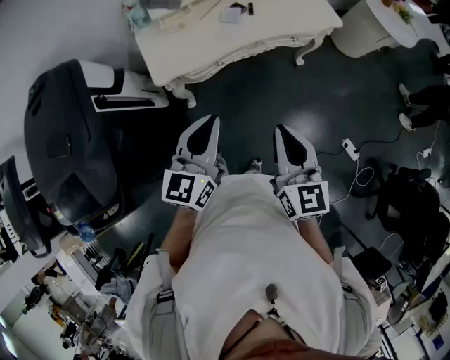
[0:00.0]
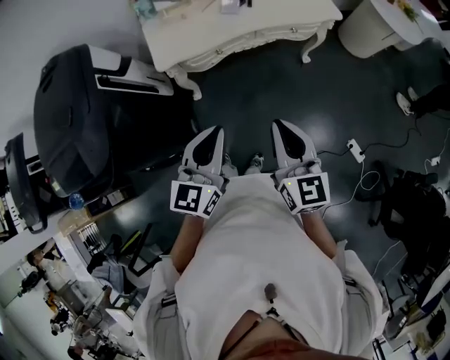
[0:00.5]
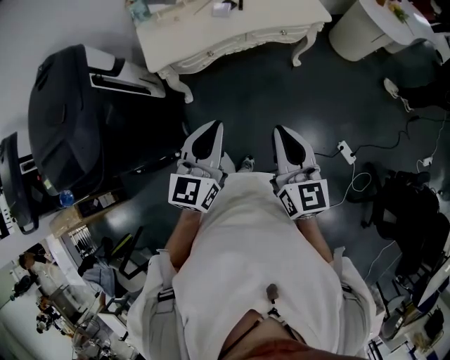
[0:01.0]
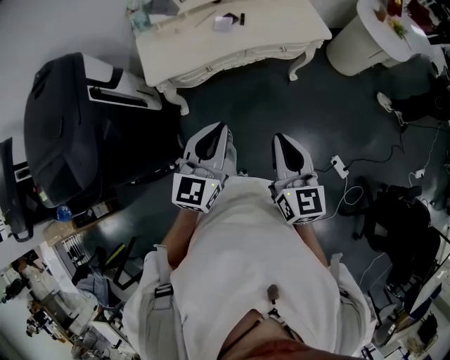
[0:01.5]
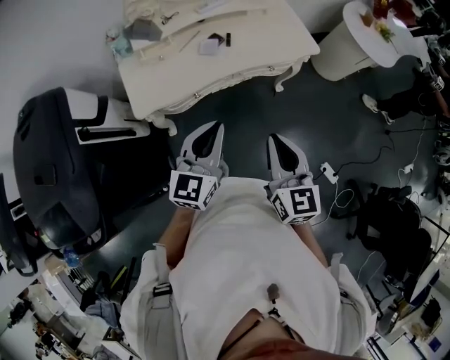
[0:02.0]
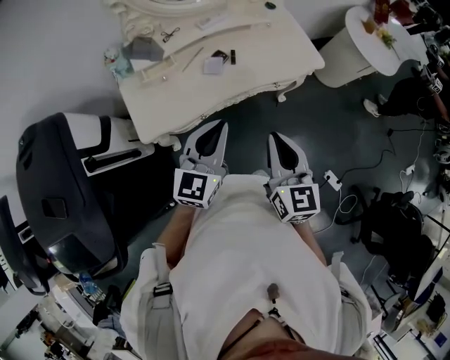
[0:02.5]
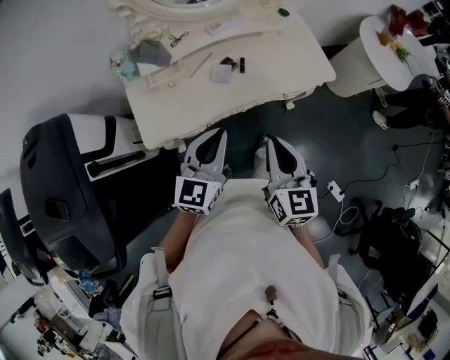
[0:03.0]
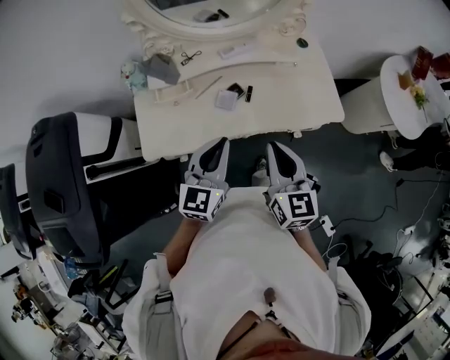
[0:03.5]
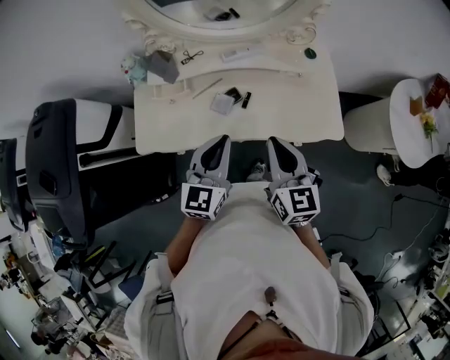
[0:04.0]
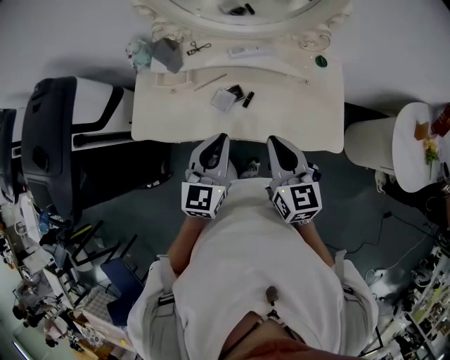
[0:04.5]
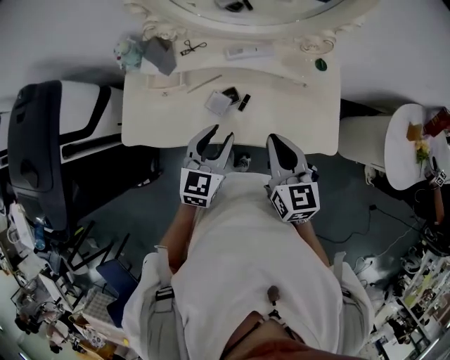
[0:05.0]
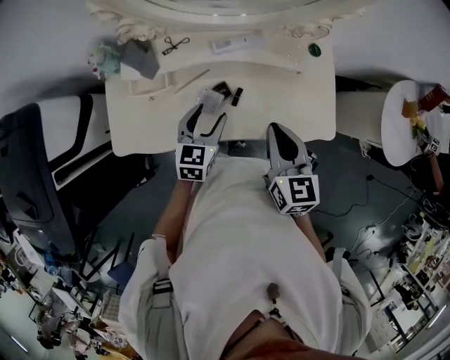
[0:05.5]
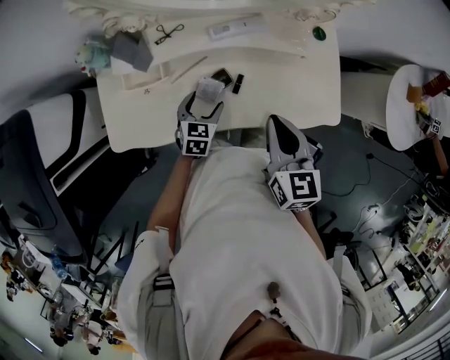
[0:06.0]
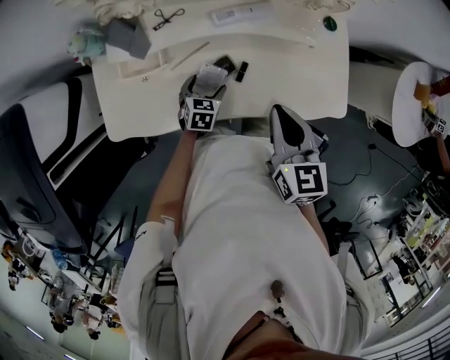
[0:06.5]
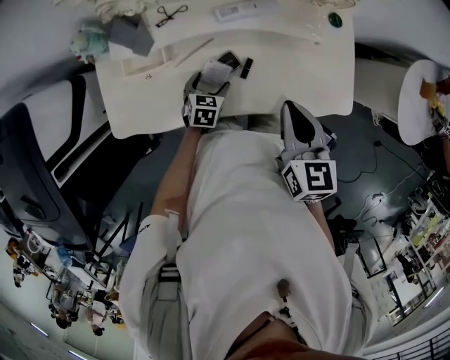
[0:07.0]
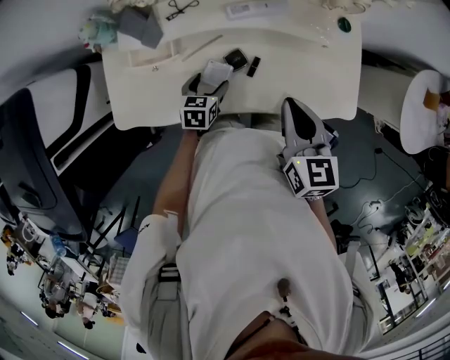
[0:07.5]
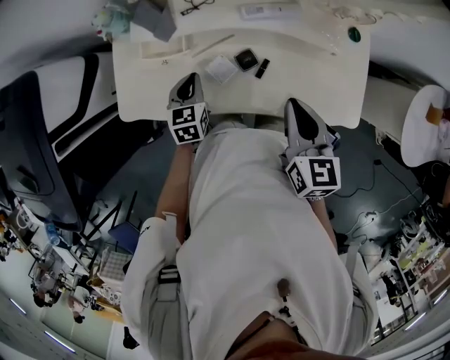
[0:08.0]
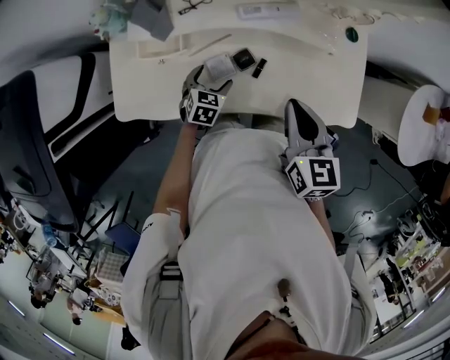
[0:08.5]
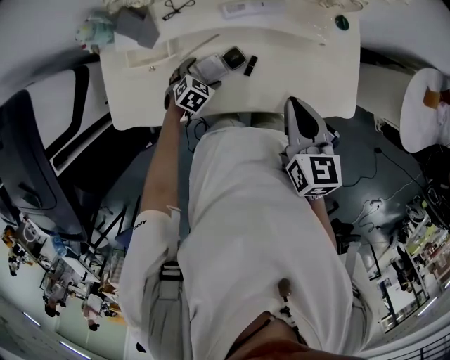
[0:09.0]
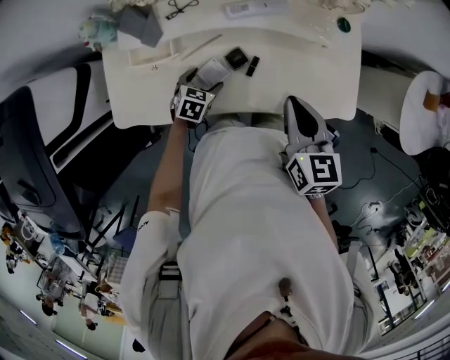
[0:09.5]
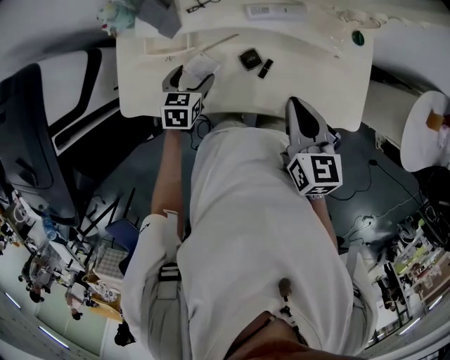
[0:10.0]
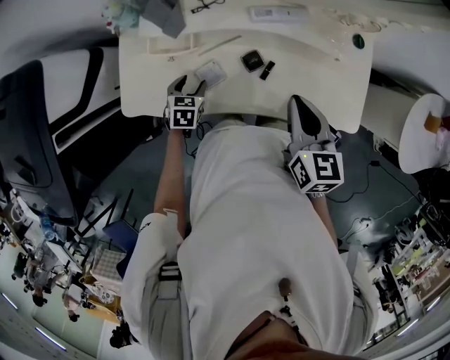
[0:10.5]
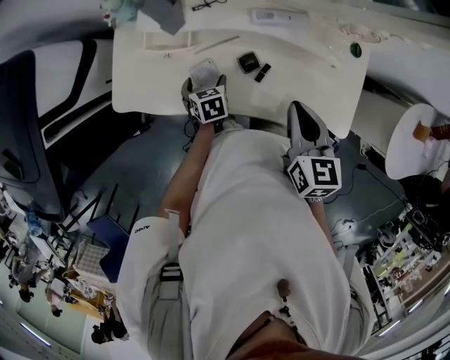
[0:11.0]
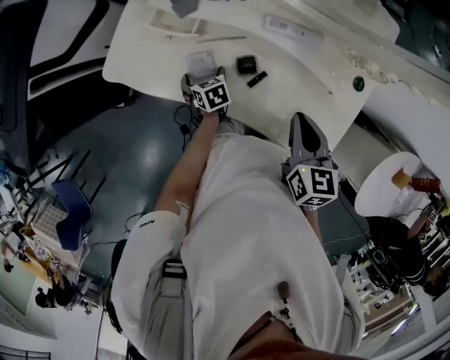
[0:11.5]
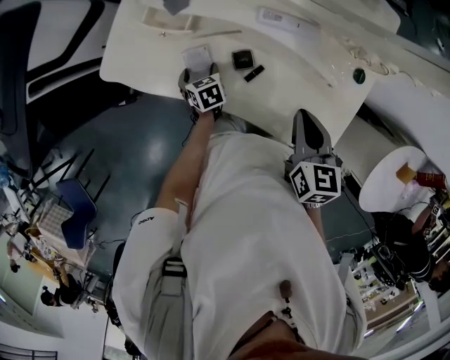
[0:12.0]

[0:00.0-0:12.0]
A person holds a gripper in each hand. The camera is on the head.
0:00.0 to 0:02.0: The right gripper shifts about 10 cm forward and to the right; the left gripper shifts roughly 15 cm to the right and forward.
0:02.0 to 0:04.0: The grippers both shift forward by some 30 cm. The left gripper swivels some 20 degrees. Meanwhile the right gripper changes its angle by roughly 20 degrees.
0:04.0 to 0:06.0: The left gripper is displaced downward and forward by roughly 30 cm, tips its fingers downward by about 30 degrees, and opens up, while the right gripper moves forward and downward, roughly 15 cm.
0:06.0 to 0:08.0: The left gripper travels to the left by roughly 10 cm, swivels approximately 20 degrees, and closes its fingers.
0:08.0 to 0:10.0: The left gripper travels downward and back again, roughly 10 cm each way, and opens up.
0:10.0 to 0:12.0: The right gripper moves roughly 10 cm, while the left gripper goes about 10 cm downward, and rotates approximately 50 degrees.

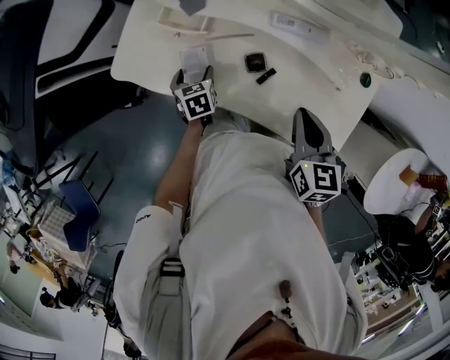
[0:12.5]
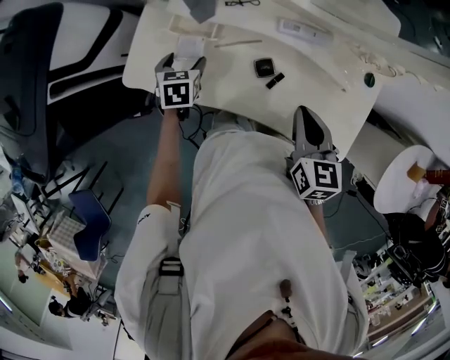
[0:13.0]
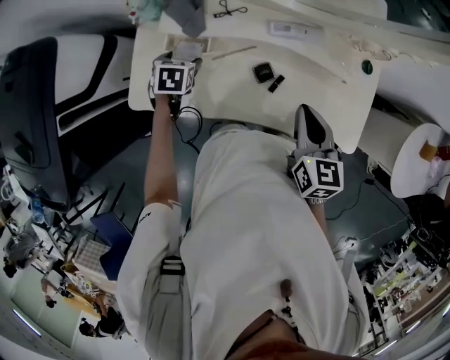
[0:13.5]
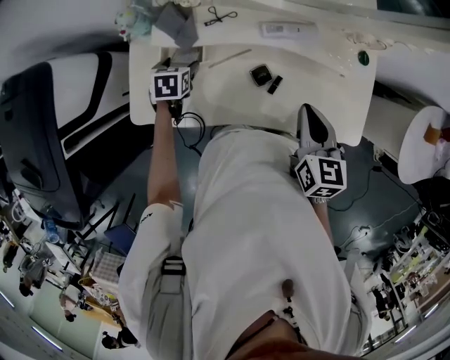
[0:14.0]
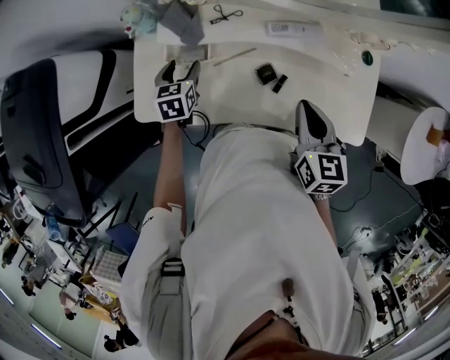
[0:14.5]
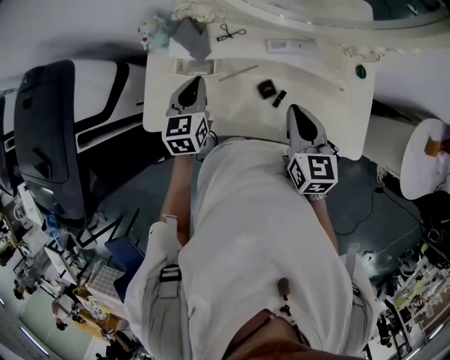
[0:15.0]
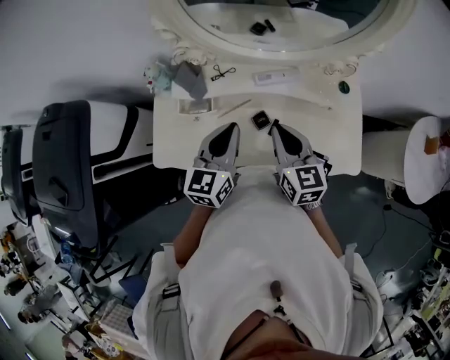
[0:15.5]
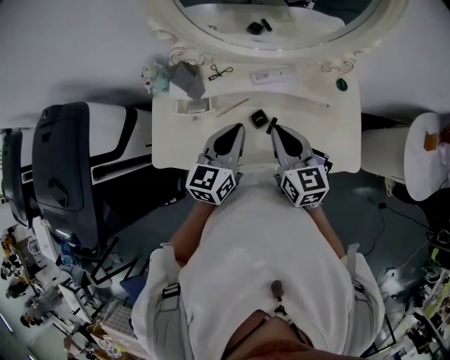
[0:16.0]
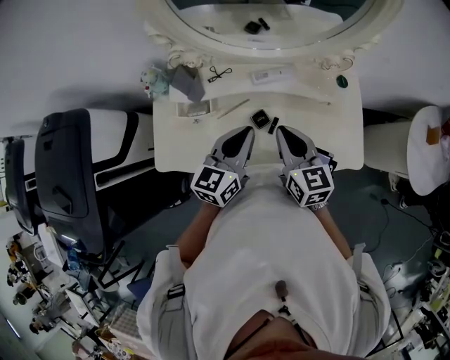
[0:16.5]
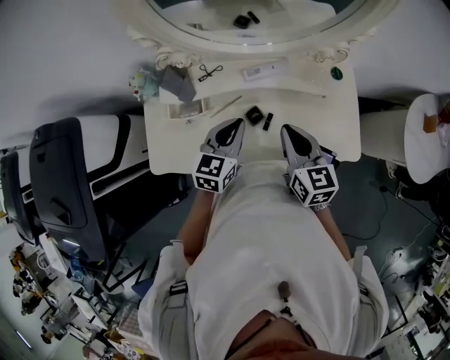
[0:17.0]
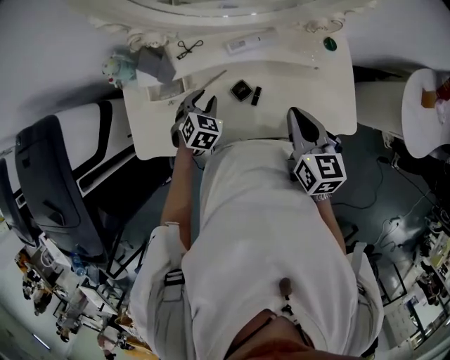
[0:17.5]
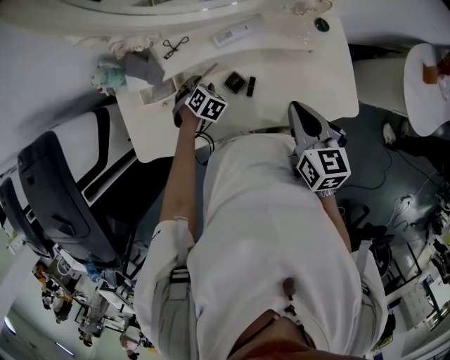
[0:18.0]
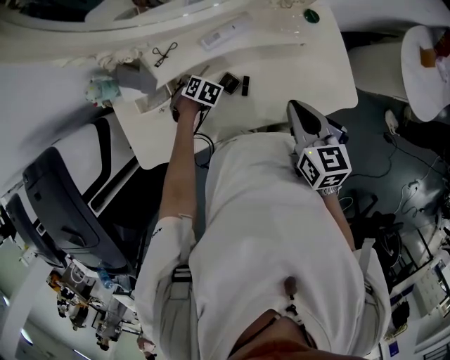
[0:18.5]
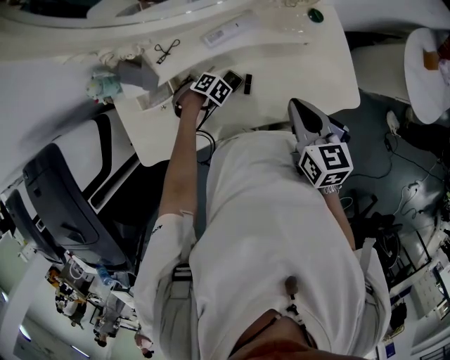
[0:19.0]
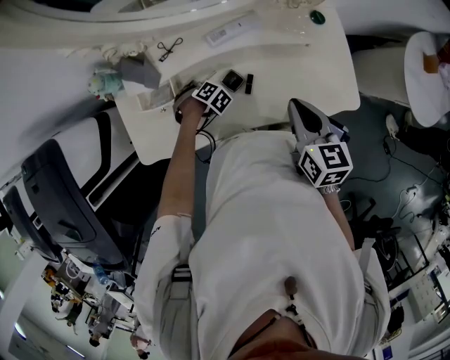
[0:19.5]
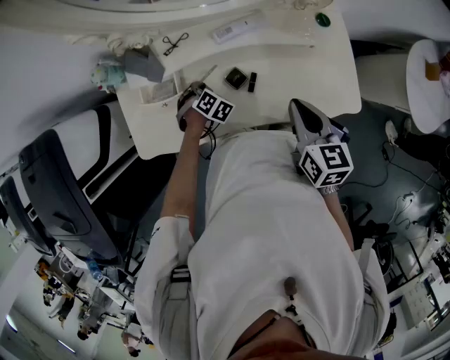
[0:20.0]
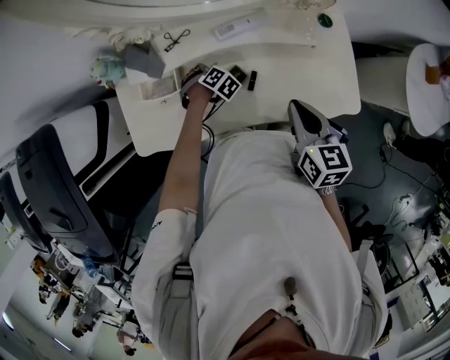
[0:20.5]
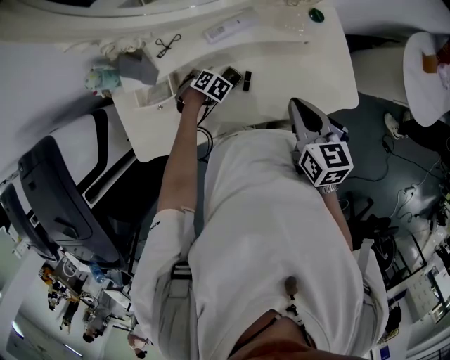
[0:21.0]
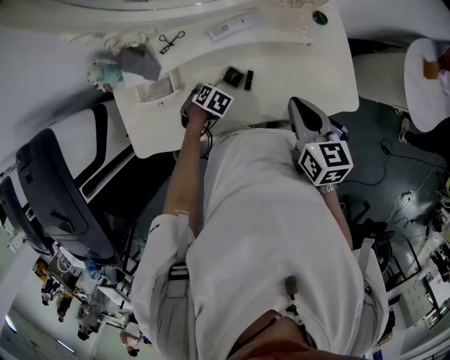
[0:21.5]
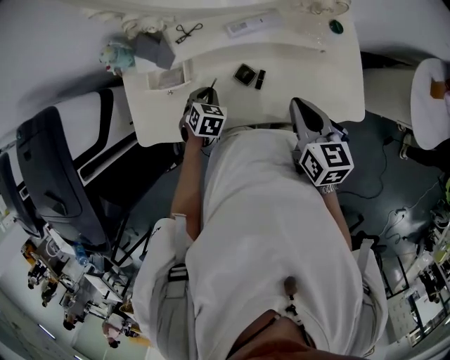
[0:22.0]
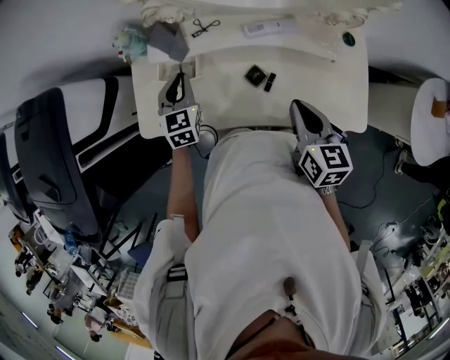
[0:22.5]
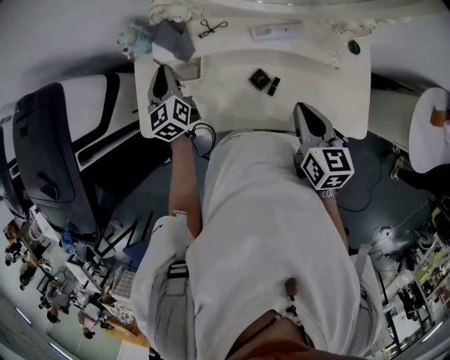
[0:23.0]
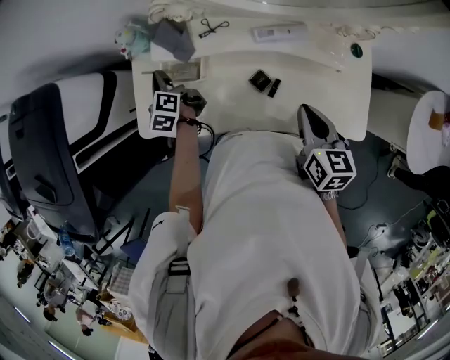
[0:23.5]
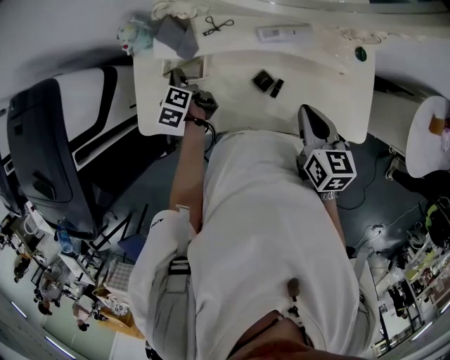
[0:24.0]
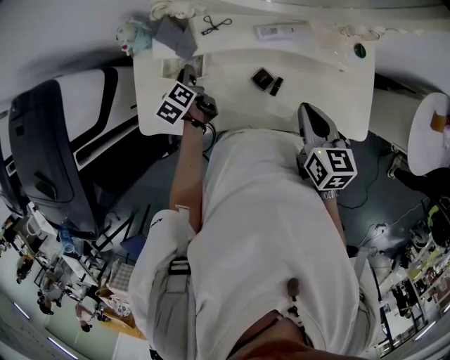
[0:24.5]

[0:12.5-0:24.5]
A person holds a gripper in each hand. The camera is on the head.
0:12.5 to 0:14.5: The left gripper ends up some 15 cm from where it was, and changes its angle by approximately 30 degrees; the right gripper moves about 5 cm.
0:14.5 to 0:16.5: The right gripper ends up about 5 cm from where it was; the left gripper is displaced upward, to the right and backward by some 30 cm, angles its fingers upward, by about 40 degrees, and closes.
0:16.5 to 0:18.5: The left gripper goes about 30 cm downward, tips its fingers downward by about 70 degrees, and opens up. Meanwhile the right gripper shifts by approximately 10 cm, and turns by about 20 degrees.
0:20.5 to 0:22.5: The left gripper goes roughly 20 cm upward, and tips its fingers upward by about 50 degrees.
0:22.5 to 0:24.5: The left gripper goes about 10 cm downward, and rotates around the line of its fingers by approximately 60 degrees, counterclockwise from behind.

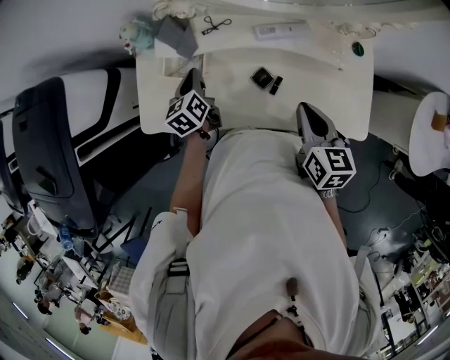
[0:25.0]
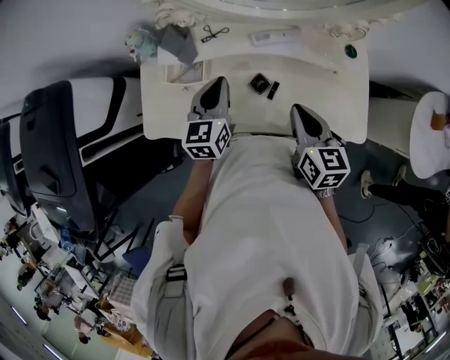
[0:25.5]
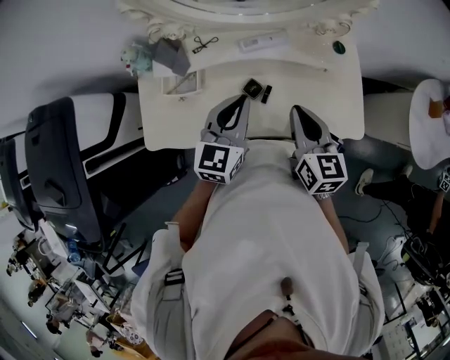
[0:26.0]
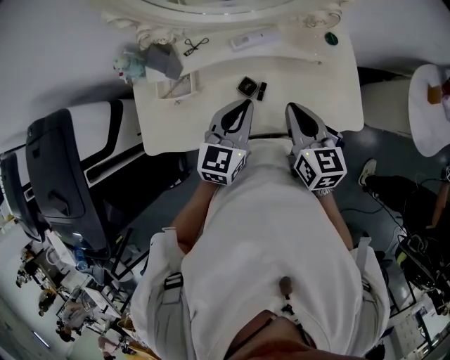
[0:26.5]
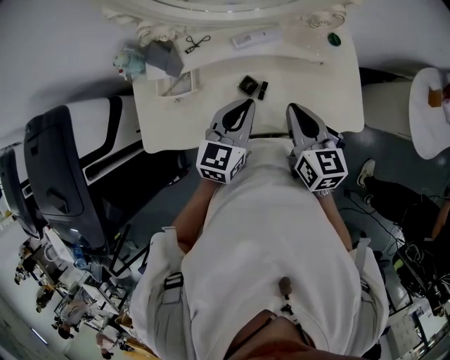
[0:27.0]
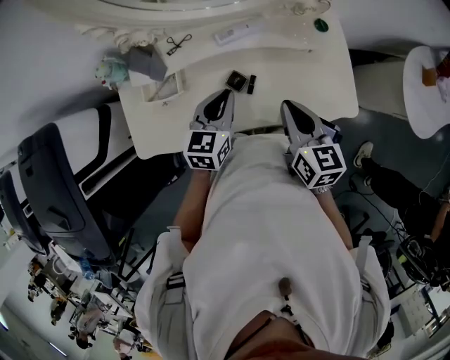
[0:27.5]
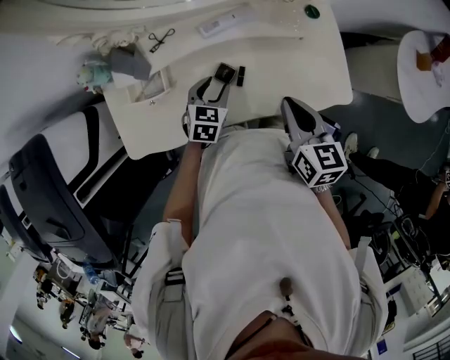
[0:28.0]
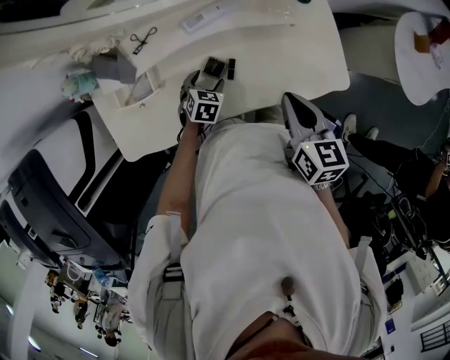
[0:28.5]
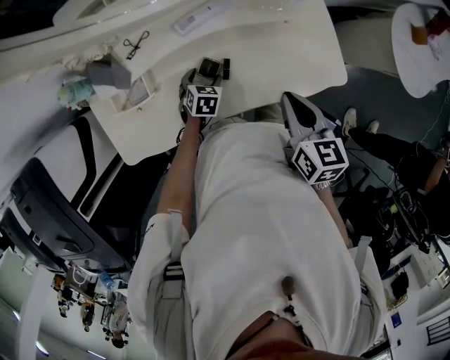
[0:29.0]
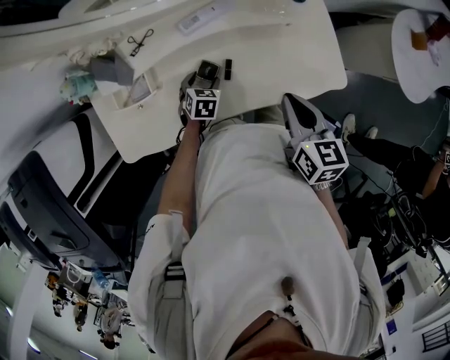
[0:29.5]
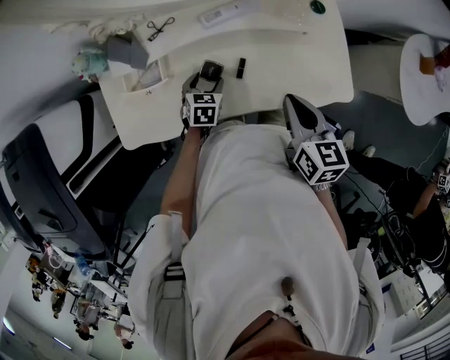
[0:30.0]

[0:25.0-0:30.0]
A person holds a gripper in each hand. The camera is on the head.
0:25.0 to 0:27.5: The left gripper heads to the right and upward, covering some 20 cm, and rotates about 50 degrees.
0:27.5 to 0:30.0: The left gripper goes roughly 20 cm downward, rotates some 30 degrees, and opens.
